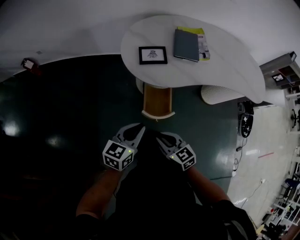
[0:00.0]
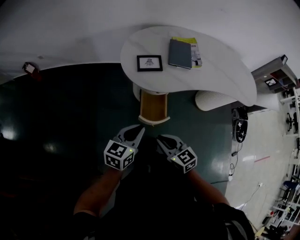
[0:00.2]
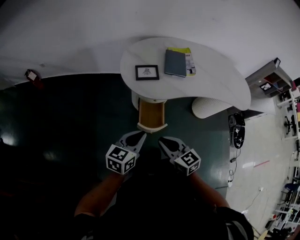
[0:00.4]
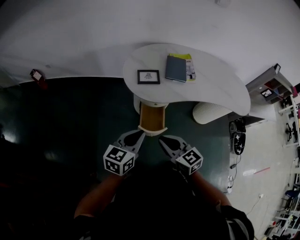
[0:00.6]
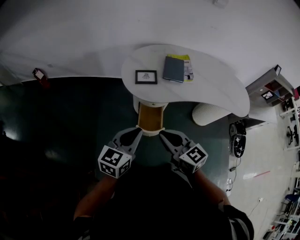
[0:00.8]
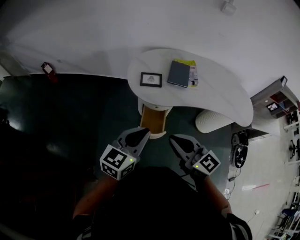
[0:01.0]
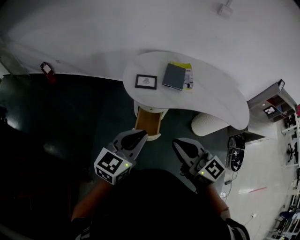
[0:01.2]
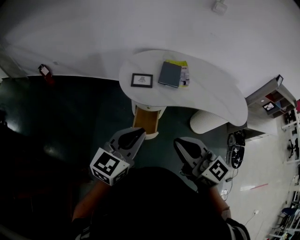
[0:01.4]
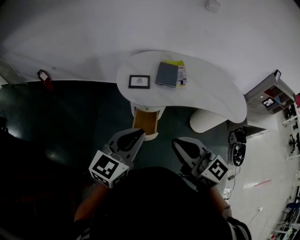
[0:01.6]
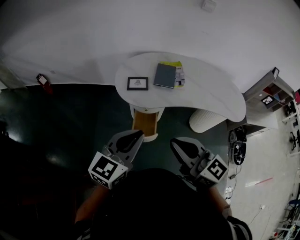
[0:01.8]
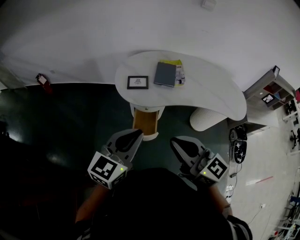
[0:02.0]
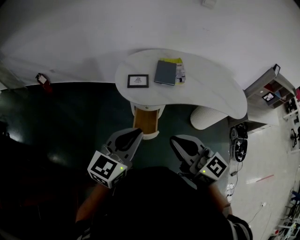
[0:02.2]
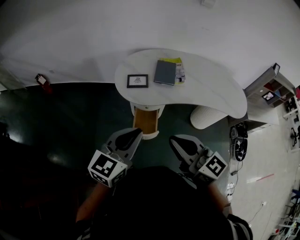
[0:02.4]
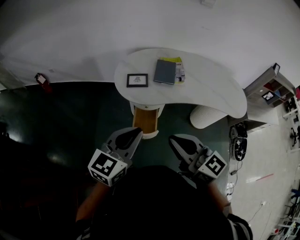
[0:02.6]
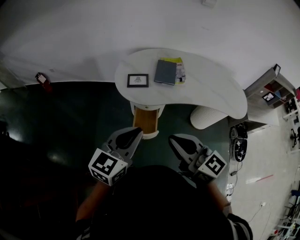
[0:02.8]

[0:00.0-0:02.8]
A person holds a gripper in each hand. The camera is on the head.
0:00.0 to 0:01.4: The two grippers go about 30 cm upward and to the right. The right gripper angles its fingers upward, by about 30 degrees, while the left gripper swivels some 20 degrees.
0:01.4 to 0:02.8: There are only small adjustments of the grippers.

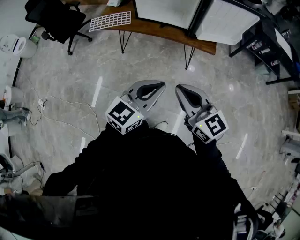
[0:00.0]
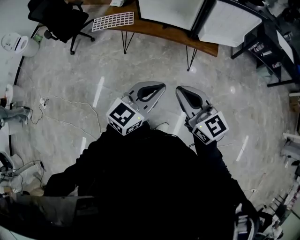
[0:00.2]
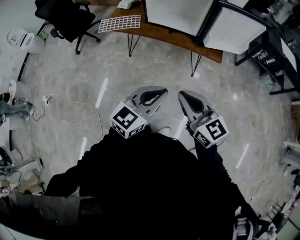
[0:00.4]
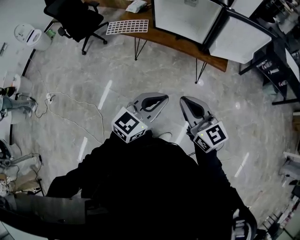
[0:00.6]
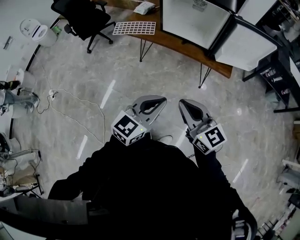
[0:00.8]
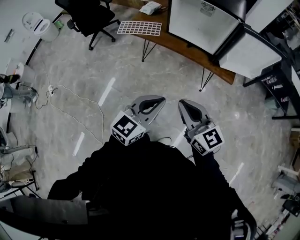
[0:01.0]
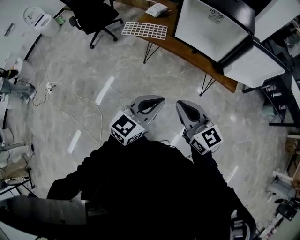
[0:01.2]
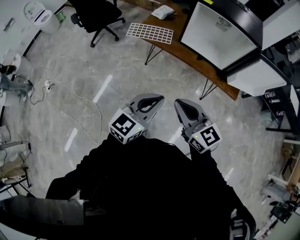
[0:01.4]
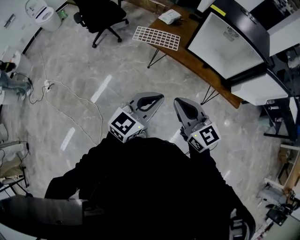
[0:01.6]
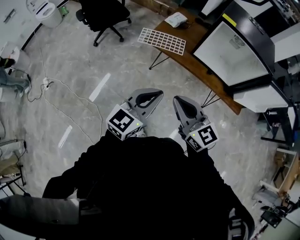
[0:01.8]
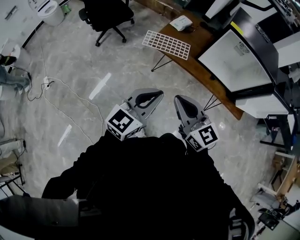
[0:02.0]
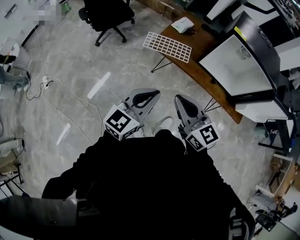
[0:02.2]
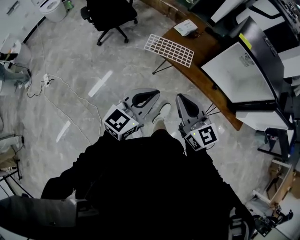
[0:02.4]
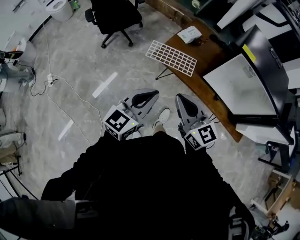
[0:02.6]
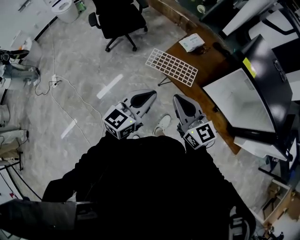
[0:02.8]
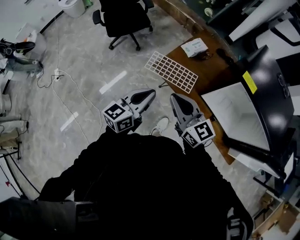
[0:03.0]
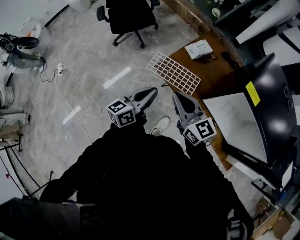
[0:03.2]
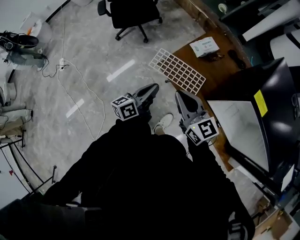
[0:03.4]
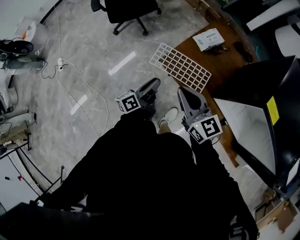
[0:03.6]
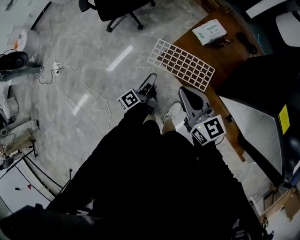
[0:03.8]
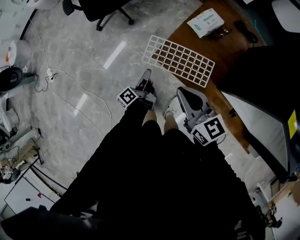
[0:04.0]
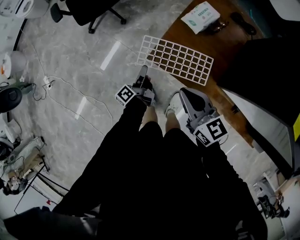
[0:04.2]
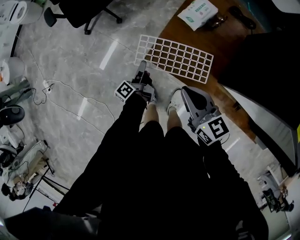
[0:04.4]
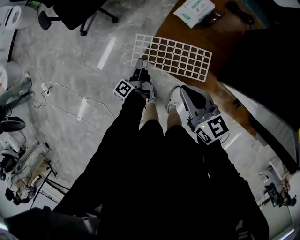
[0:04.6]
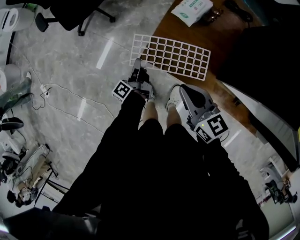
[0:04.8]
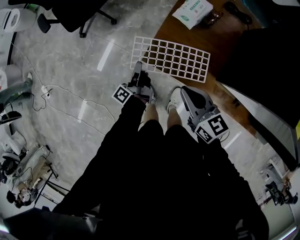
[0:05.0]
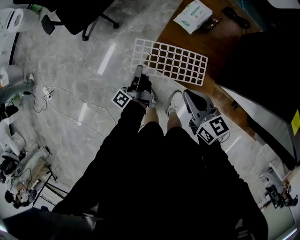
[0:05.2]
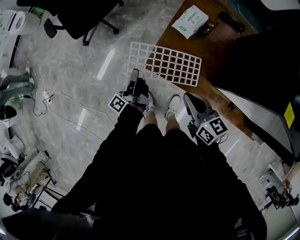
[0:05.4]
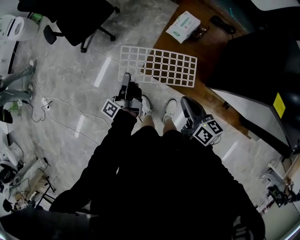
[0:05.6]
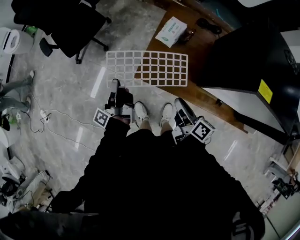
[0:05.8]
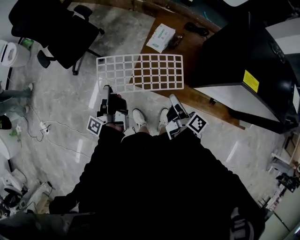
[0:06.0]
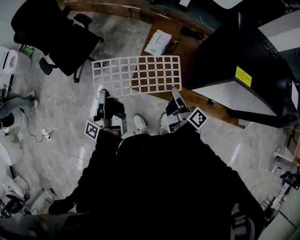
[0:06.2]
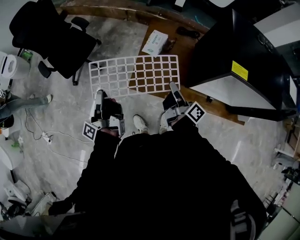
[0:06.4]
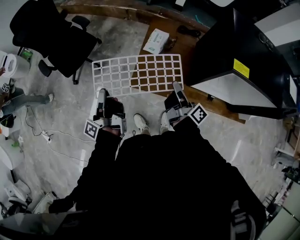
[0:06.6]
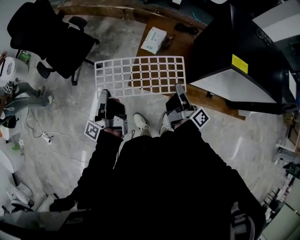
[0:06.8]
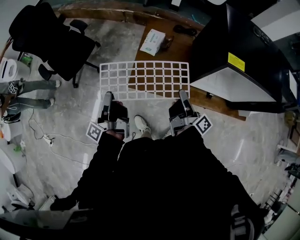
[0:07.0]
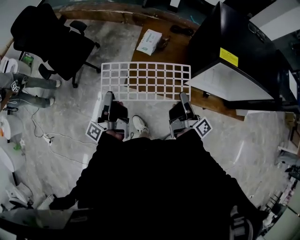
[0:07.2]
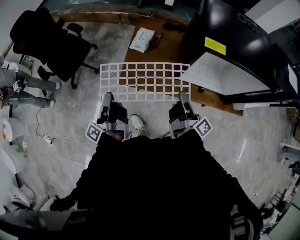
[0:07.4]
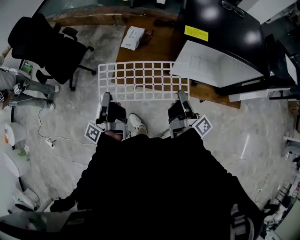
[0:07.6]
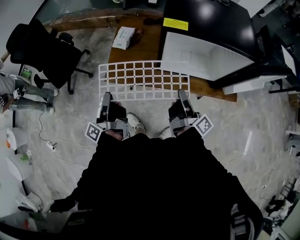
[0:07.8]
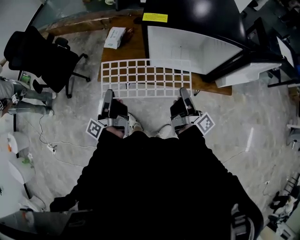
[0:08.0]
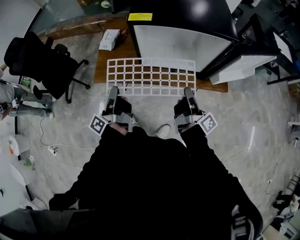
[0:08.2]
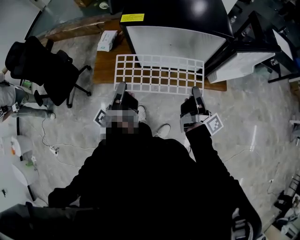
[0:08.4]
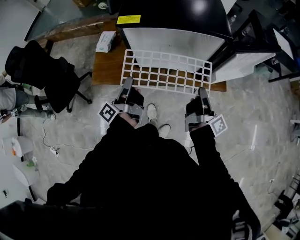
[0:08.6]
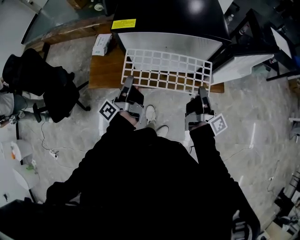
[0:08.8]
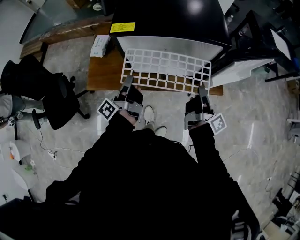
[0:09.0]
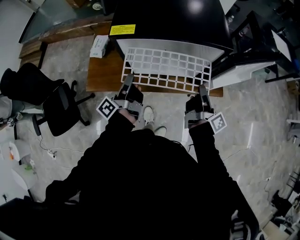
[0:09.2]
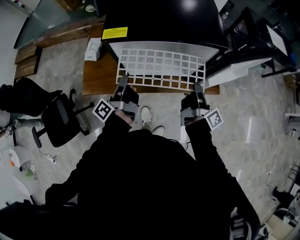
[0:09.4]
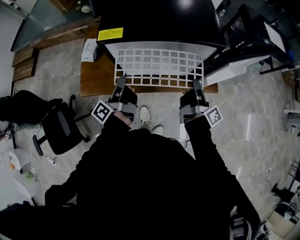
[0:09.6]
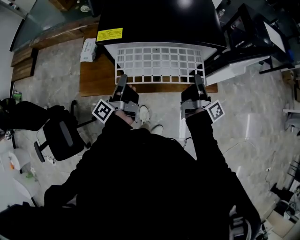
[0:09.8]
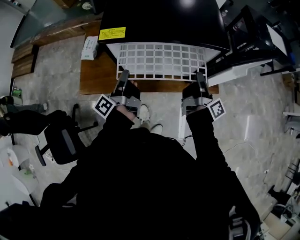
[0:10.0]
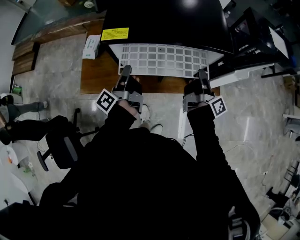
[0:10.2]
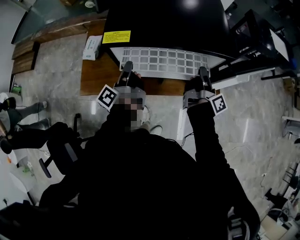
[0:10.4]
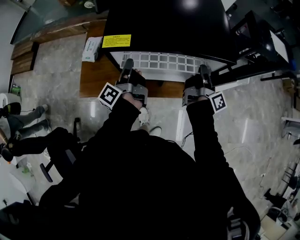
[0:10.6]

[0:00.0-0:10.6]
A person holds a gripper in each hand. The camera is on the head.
0:00.0 to 0:01.6: Both grippers move to the left and forward, some 30 cm.
0:01.6 to 0:03.0: Both grippers travel together forward, some 35 cm. The left gripper changes its angle by some 30 degrees.
0:03.0 to 0:04.6: The left gripper goes some 50 cm downward and forward, rotates around the line of its fingers by some 60 degrees, counterclockwise from behind, and opens up. Meanwhile the right gripper is displaced downward and forward by roughly 25 cm, and turns by some 30 degrees.
0:04.6 to 0:06.0: The left gripper goes roughly 30 cm upward, rotates approximately 20 degrees, and closes up, while the right gripper goes some 5 cm to the right, rotates around the line of its fingers by some 60 degrees, clockwise from behind, and opens.
0:06.0 to 0:07.6: The two grippers go some 20 cm to the right, backward and upward. The right gripper rotates about 30 degrees, and closes its fingers.
0:07.6 to 0:09.0: The two grippers go some 30 cm to the right. The left gripper swivels about 20 degrees.
0:09.0 to 0:10.6: The grippers both shift forward by approximately 15 cm.

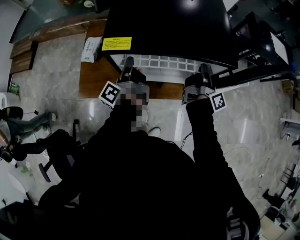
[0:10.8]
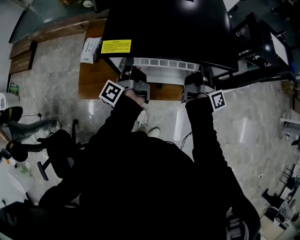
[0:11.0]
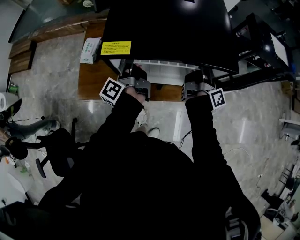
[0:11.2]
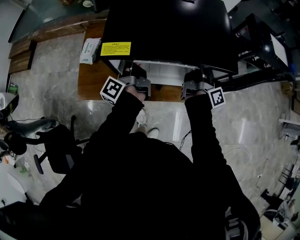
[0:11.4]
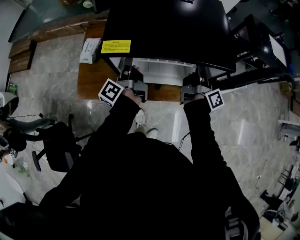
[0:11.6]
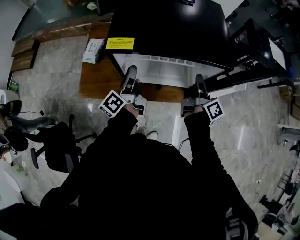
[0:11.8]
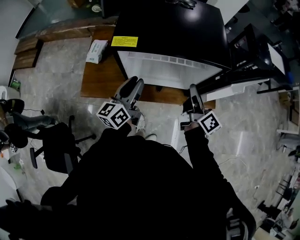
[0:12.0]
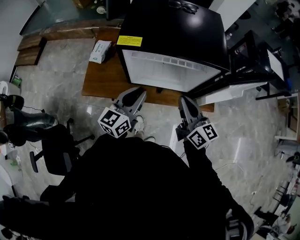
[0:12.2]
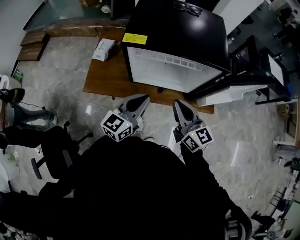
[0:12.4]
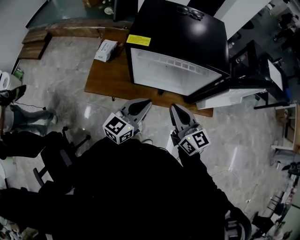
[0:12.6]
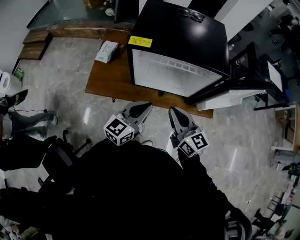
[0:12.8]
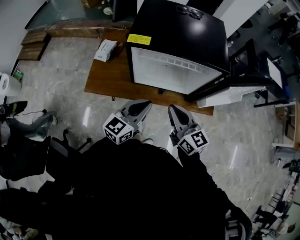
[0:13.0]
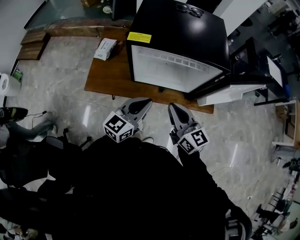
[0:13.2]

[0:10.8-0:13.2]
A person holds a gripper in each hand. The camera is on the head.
0:10.8 to 0:12.0: Both grippers travel together backward, some 10 cm. The right gripper swivels some 40 degrees, while the left gripper rolls clockwise, seen from behind, by some 50 degrees, and opens up.
0:12.0 to 0:13.2: The right gripper shifts approximately 15 cm backward and to the left, rolls counterclockwise, seen from behind, by some 40 degrees, and closes its fingers, while the left gripper heads backward, covering some 10 cm, turns by about 30 degrees, and closes its fingers.

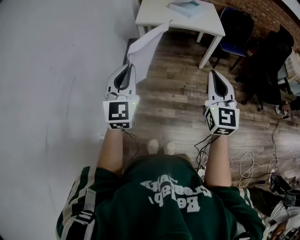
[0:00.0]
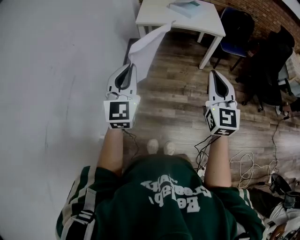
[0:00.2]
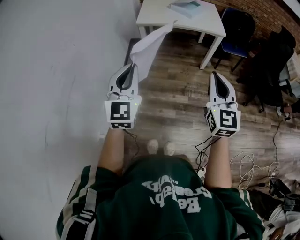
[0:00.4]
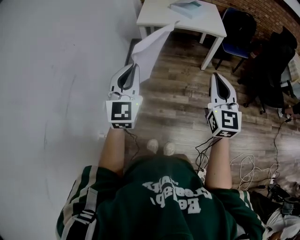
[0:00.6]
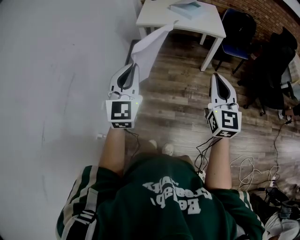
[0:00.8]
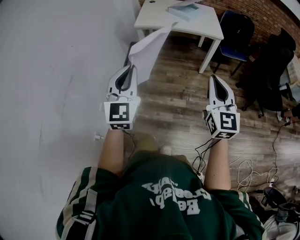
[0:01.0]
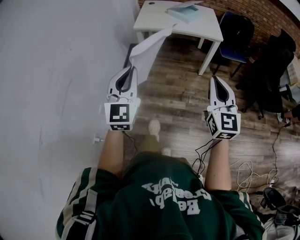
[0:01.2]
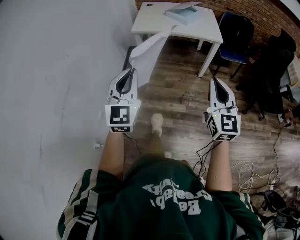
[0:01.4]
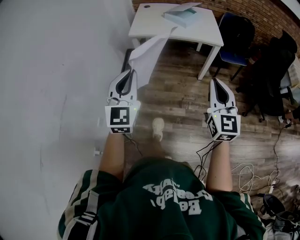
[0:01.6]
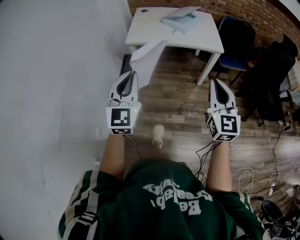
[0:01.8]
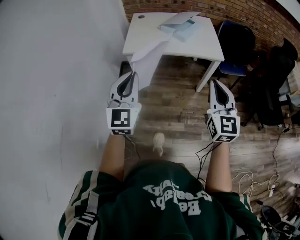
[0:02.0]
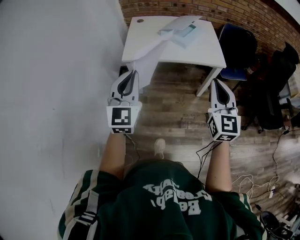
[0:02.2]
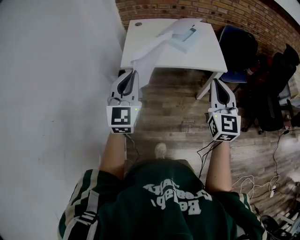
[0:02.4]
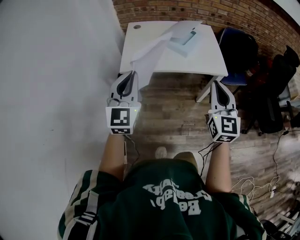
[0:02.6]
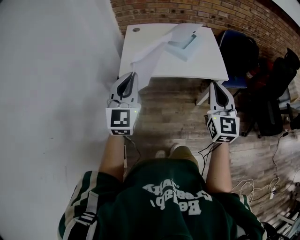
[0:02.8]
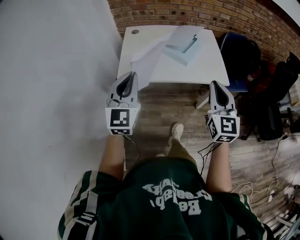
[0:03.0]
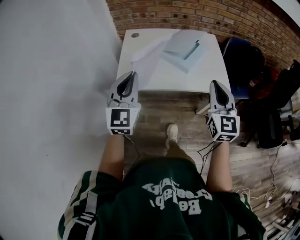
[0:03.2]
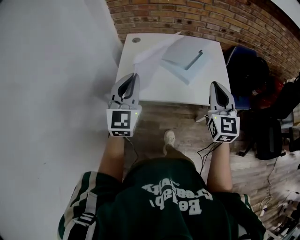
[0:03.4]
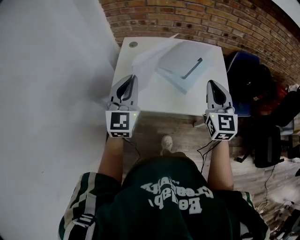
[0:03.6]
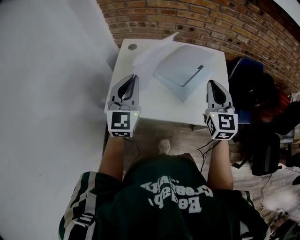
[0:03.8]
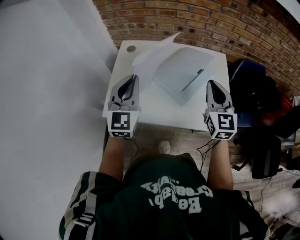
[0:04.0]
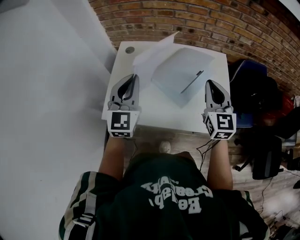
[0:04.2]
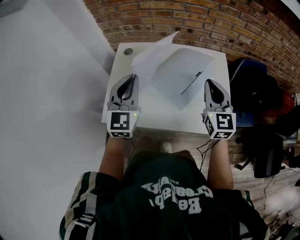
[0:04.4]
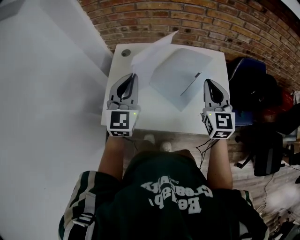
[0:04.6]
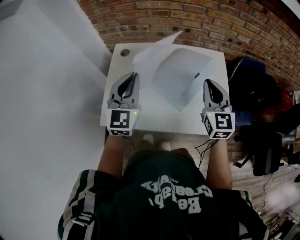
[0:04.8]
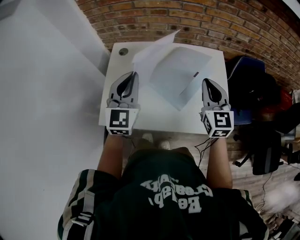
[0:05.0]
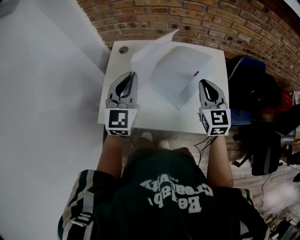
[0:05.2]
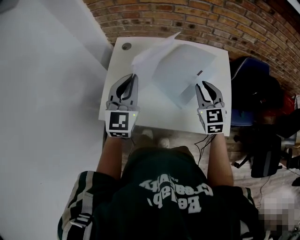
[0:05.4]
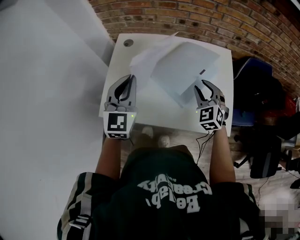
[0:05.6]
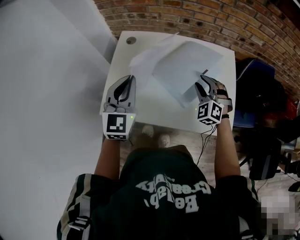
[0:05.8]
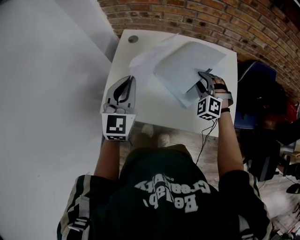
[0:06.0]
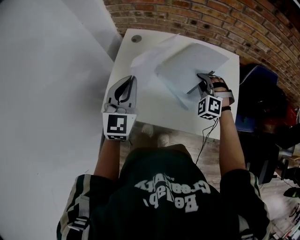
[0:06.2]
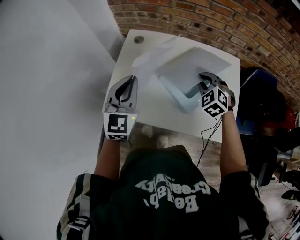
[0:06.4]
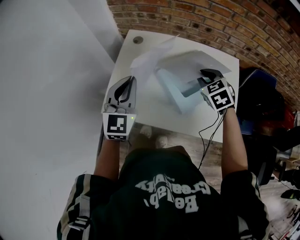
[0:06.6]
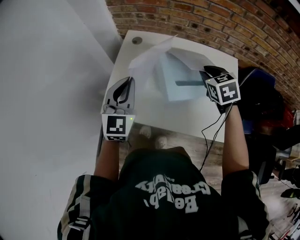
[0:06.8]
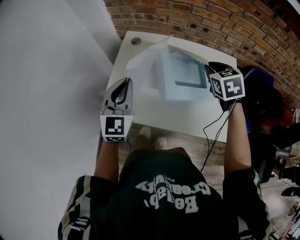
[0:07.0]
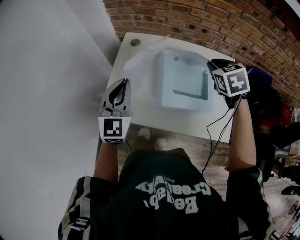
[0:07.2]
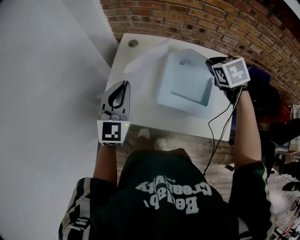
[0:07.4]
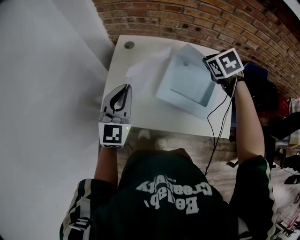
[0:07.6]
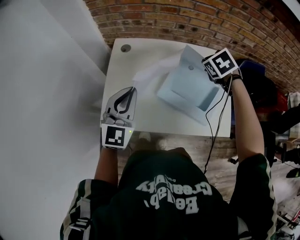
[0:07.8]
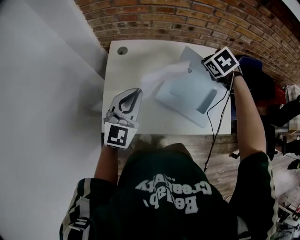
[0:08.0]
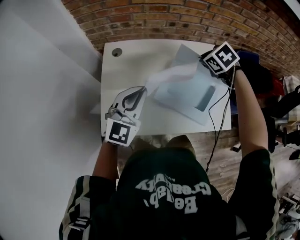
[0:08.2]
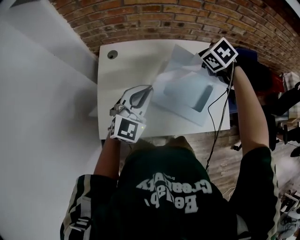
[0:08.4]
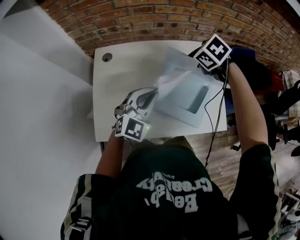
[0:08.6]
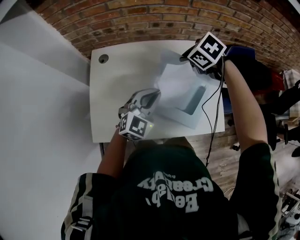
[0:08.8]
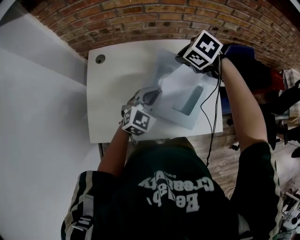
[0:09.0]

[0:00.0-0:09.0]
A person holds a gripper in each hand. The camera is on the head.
0:00.0 to 0:01.6: Both grippers move forward and to the right, some 10 cm.
0:01.6 to 0:03.0: The grippers both shift forward by some 40 cm.
0:03.0 to 0:04.4: Both grippers travel together forward, roughly 35 cm.
0:04.4 to 0:06.0: The right gripper shifts roughly 20 cm downward and forward, rolls counterclockwise, seen from behind, by some 60 degrees, and opens up. The left gripper ends up roughly 5 cm from where it was.
0:06.0 to 0:07.6: The right gripper travels upward and forward by some 10 cm, rotates around the line of its fingers by about 50 degrees, clockwise from behind, and closes its fingers.
0:07.6 to 0:09.0: The left gripper is displaced to the right and downward by some 25 cm, and rotates approximately 40 degrees. Meanwhile the right gripper turns by about 20 degrees.
